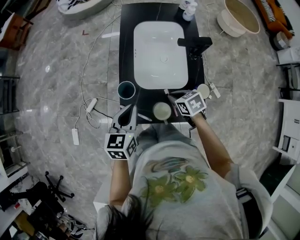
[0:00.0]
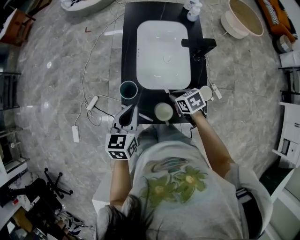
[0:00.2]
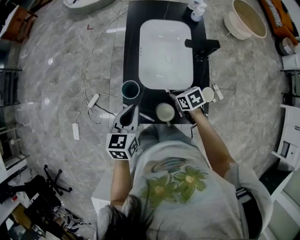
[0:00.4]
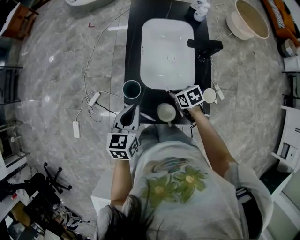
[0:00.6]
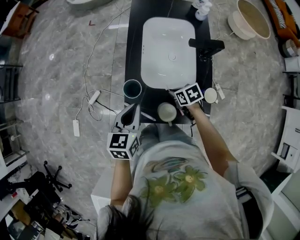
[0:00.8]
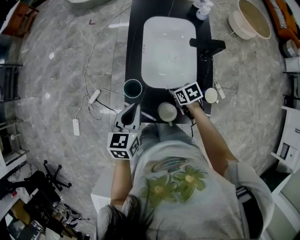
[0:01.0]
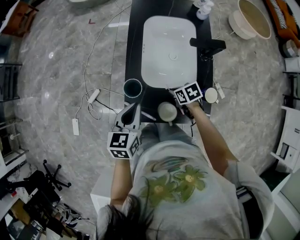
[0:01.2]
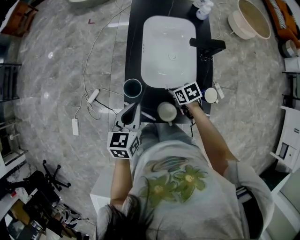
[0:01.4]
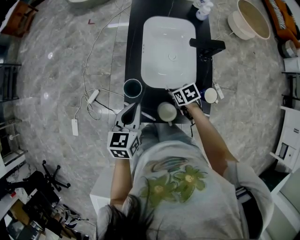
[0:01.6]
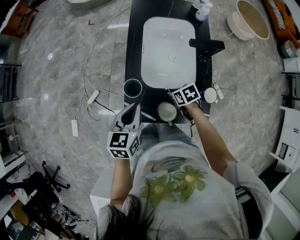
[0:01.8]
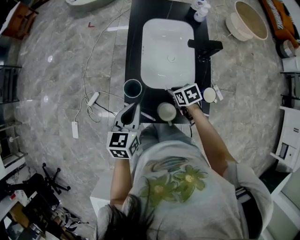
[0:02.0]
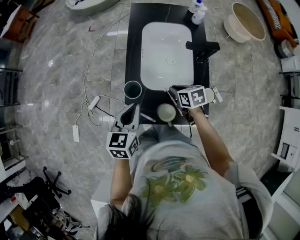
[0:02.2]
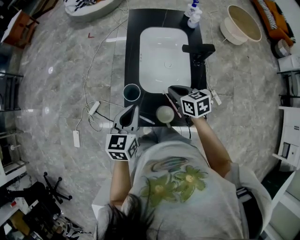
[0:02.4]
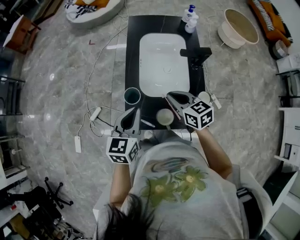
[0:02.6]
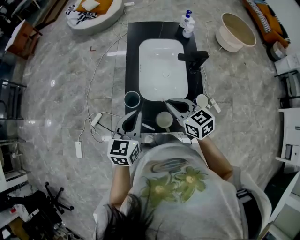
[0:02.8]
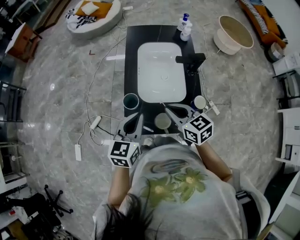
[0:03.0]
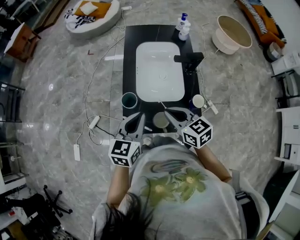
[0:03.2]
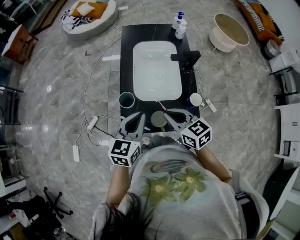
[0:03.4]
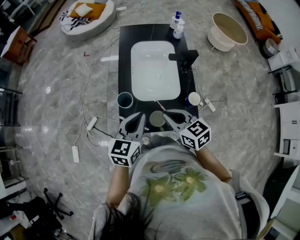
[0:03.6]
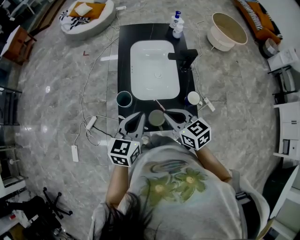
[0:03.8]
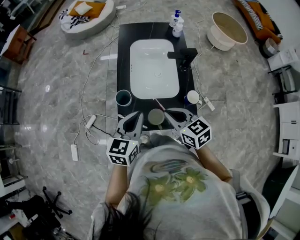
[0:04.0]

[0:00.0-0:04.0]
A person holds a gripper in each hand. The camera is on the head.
0:00.0 to 0:01.4: The right gripper is displaced downward by about 10 cm.
0:01.4 to 0:02.6: The right gripper travels upward by about 20 cm, and changes its angle by about 40 degrees, while the left gripper shifts approximately 5 cm upward.
0:02.6 to 0:04.0: The left gripper shifts by some 5 cm; the right gripper moves backward, approximately 10 cm.

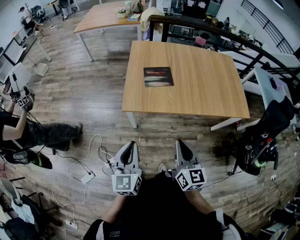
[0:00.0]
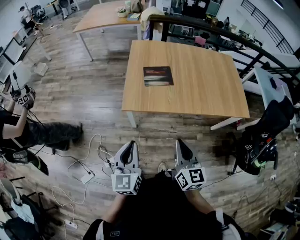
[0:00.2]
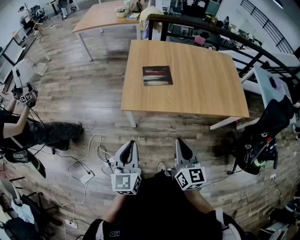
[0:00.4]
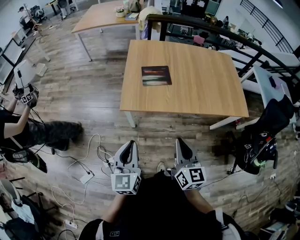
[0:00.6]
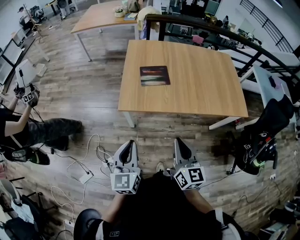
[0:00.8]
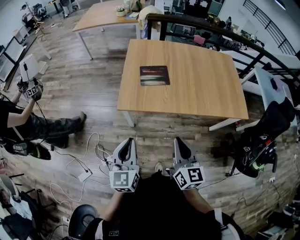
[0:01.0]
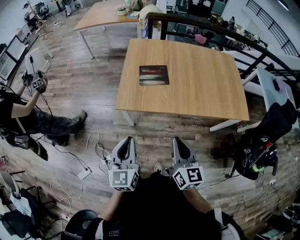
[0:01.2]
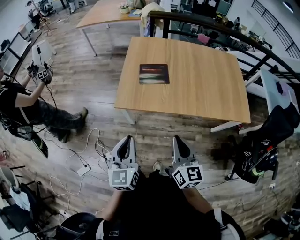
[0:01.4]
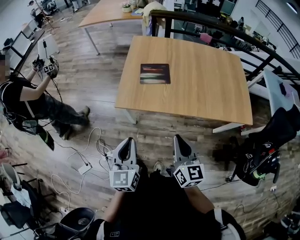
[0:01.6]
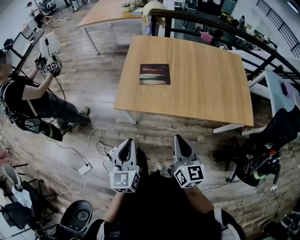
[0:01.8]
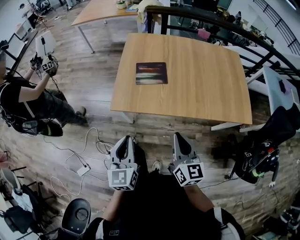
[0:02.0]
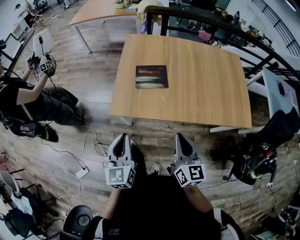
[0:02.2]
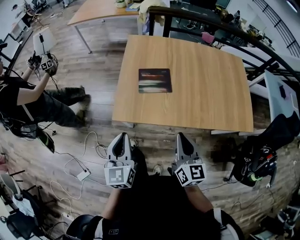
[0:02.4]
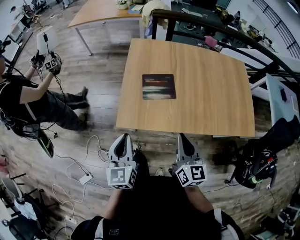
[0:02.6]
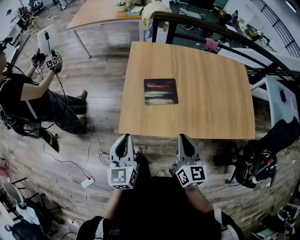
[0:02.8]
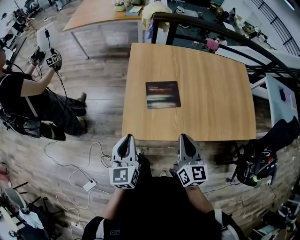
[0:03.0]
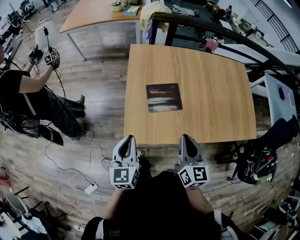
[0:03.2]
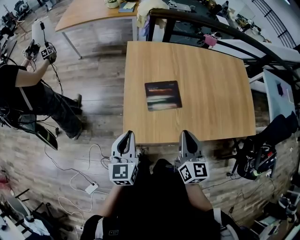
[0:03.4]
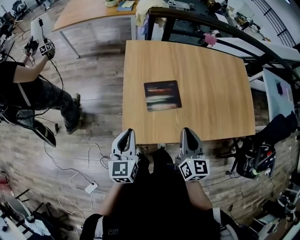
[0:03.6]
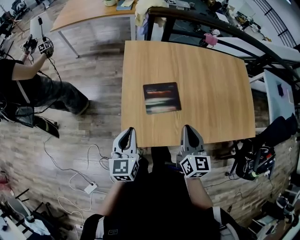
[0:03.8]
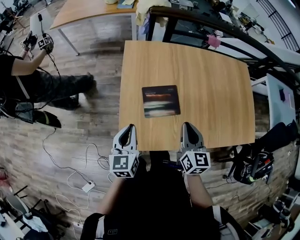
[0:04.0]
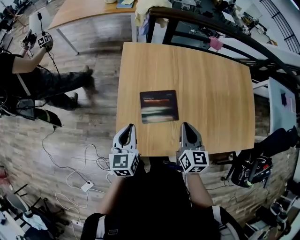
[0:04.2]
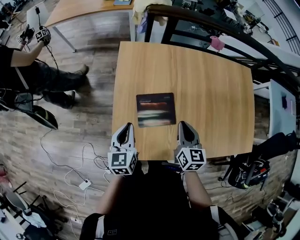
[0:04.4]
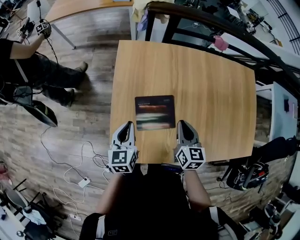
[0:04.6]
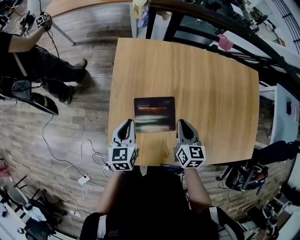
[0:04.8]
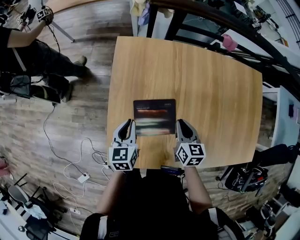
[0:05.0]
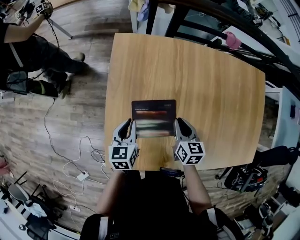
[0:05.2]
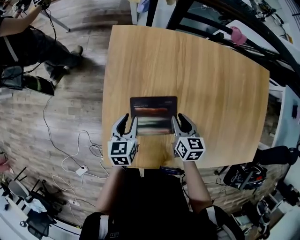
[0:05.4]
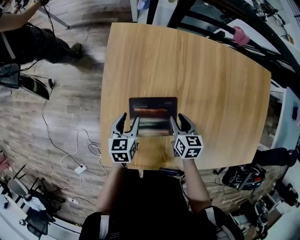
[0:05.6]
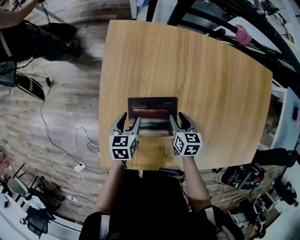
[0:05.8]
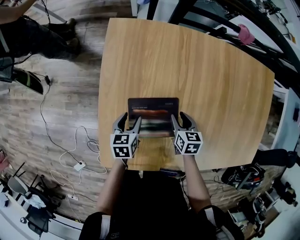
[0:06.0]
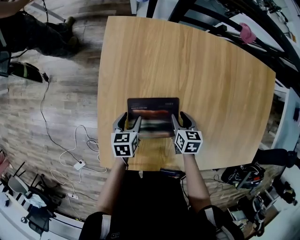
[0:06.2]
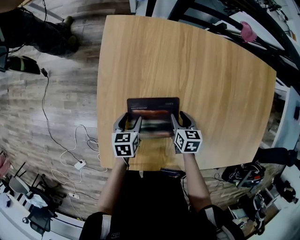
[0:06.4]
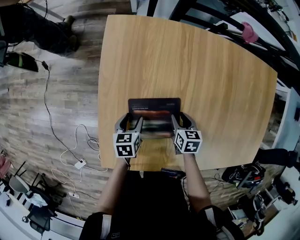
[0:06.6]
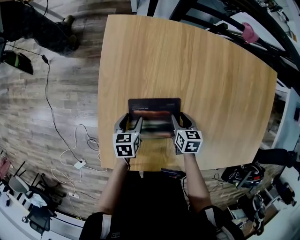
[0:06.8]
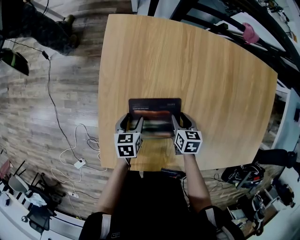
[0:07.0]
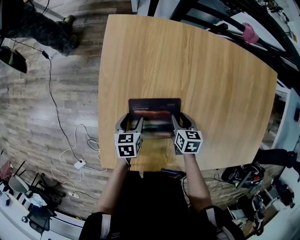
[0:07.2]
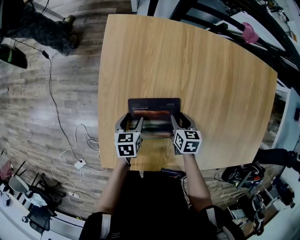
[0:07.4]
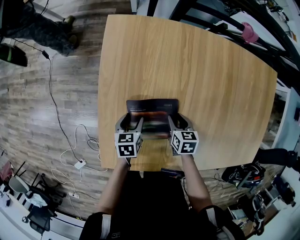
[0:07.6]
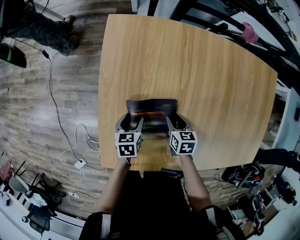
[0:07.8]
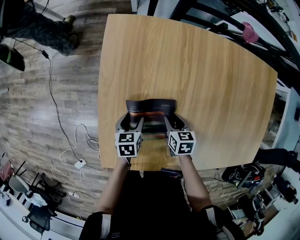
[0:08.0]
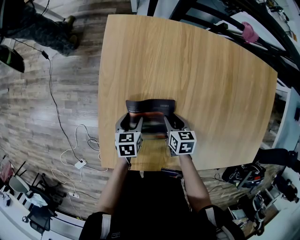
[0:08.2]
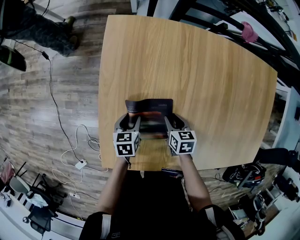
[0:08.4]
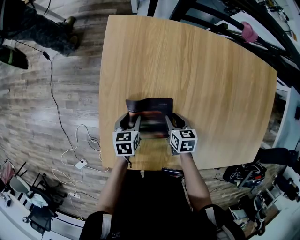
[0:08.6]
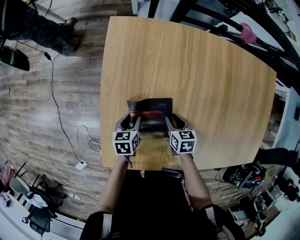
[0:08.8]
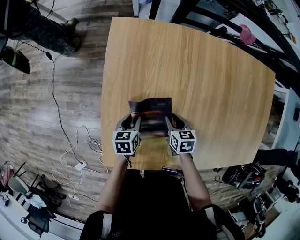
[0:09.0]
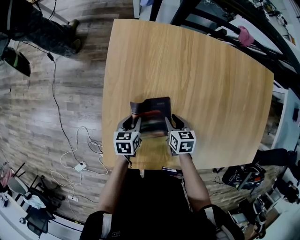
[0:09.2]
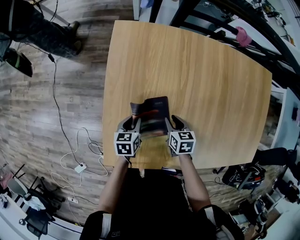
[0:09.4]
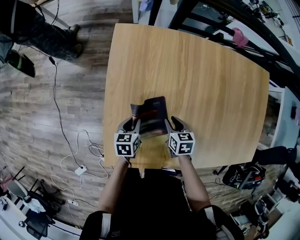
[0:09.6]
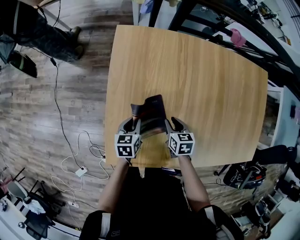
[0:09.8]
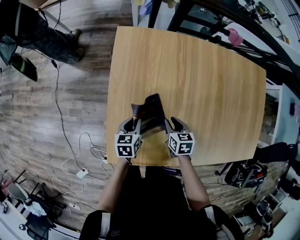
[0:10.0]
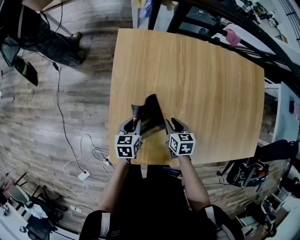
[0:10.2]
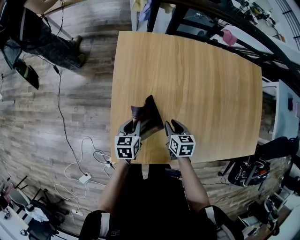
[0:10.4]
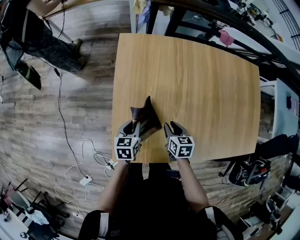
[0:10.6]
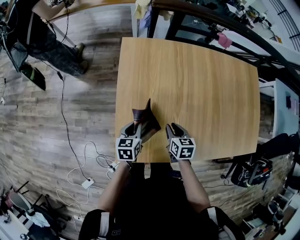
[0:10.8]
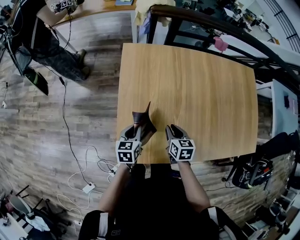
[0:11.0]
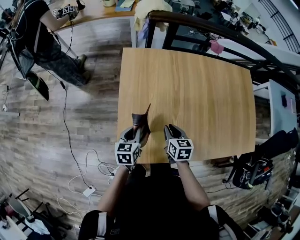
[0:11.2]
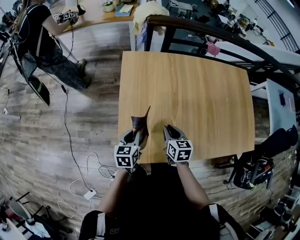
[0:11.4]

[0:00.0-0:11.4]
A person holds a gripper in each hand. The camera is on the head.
0:00.0 to 0:01.4: Both grippers travel together to the right, roughly 5 cm.
0:01.4 to 0:02.8: Both grippers move forward, approximately 20 cm.
0:02.8 to 0:04.2: The left gripper heads forward and downward, covering roughly 25 cm. Meanwhile the right gripper shifts roughly 20 cm forward.
0:04.2 to 0:05.6: Both grippers travel together downward and forward, approximately 25 cm. The right gripper rotates approximately 30 degrees, and opens up; the left gripper swivels roughly 20 degrees, and opens its fingers.
0:05.6 to 0:07.2: The grippers both shift downward by approximately 10 cm.
0:07.2 to 0:08.6: There are only small adjustments of the grippers.
0:08.6 to 0:10.0: Both grippers travel together upward, about 5 cm. The left gripper closes up.
0:10.0 to 0:11.4: The grippers both shift upward and backward by roughly 15 cm.

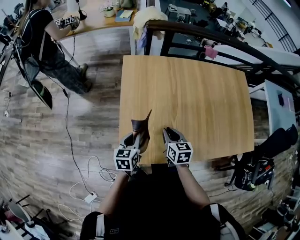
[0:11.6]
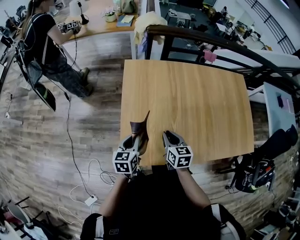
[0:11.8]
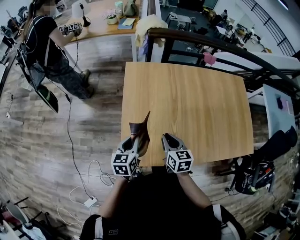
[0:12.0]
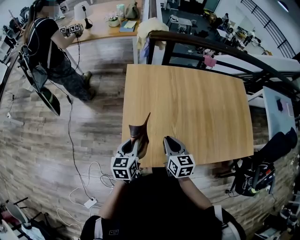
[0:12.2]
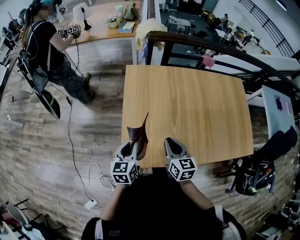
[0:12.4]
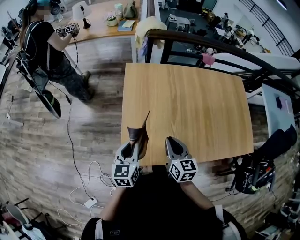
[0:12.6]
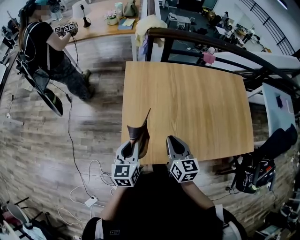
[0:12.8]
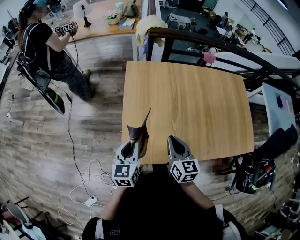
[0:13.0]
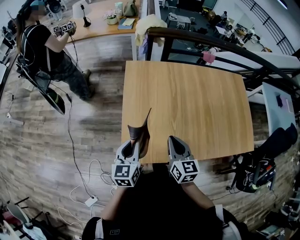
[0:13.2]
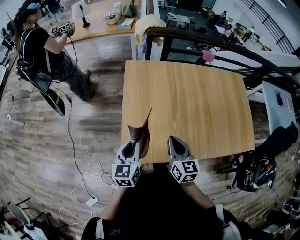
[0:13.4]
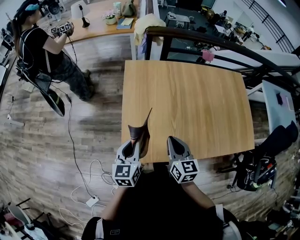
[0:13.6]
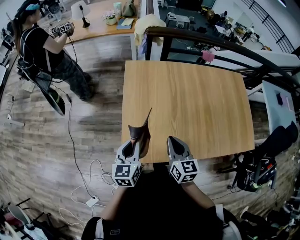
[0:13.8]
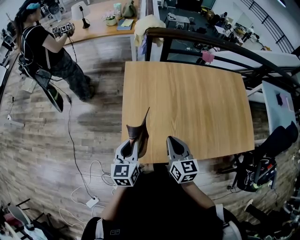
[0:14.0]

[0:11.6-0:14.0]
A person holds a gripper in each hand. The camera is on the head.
0:11.6 to 0:12.8: The right gripper is displaced upward and backward by some 10 cm. The left gripper travels upward by about 10 cm.
0:12.8 to 0:14.0: Both grippers stay about where they are.

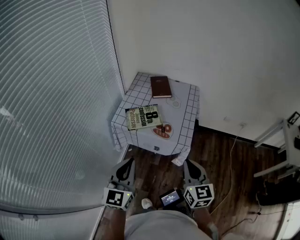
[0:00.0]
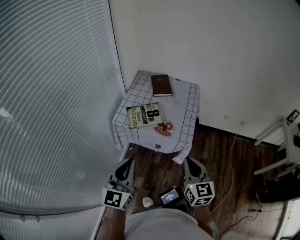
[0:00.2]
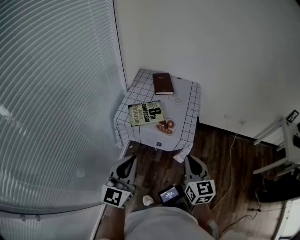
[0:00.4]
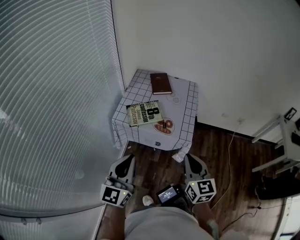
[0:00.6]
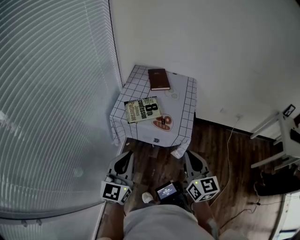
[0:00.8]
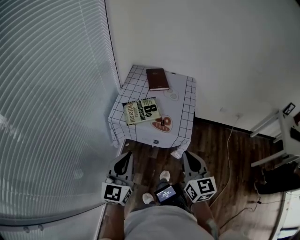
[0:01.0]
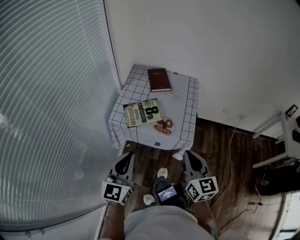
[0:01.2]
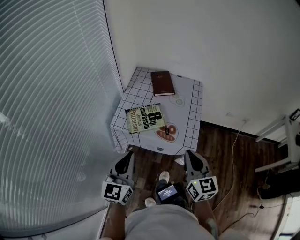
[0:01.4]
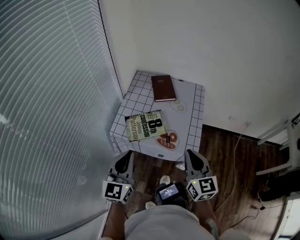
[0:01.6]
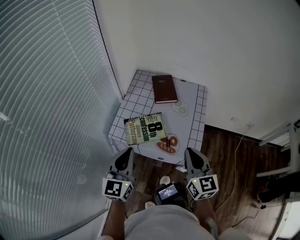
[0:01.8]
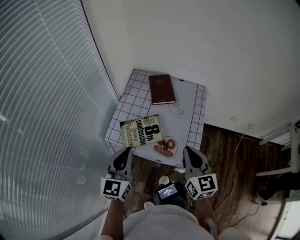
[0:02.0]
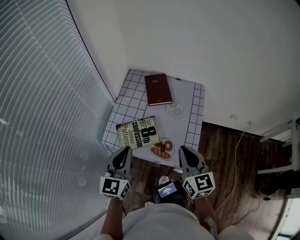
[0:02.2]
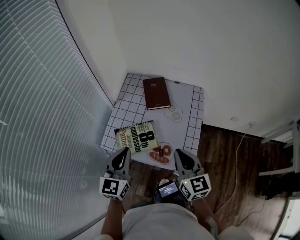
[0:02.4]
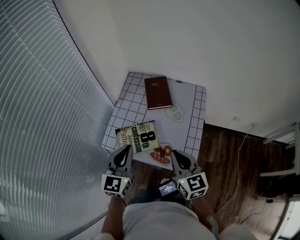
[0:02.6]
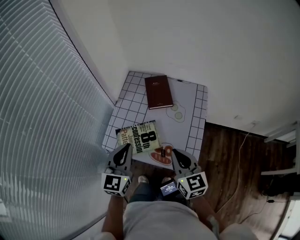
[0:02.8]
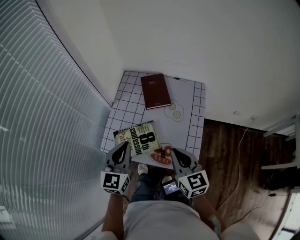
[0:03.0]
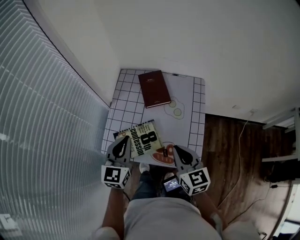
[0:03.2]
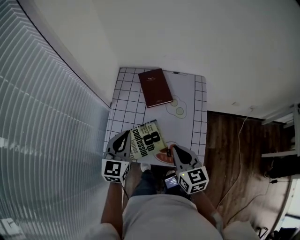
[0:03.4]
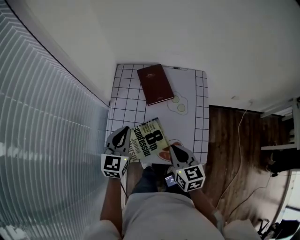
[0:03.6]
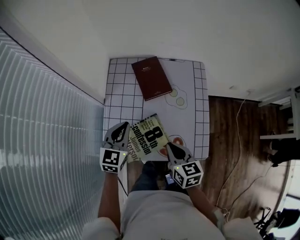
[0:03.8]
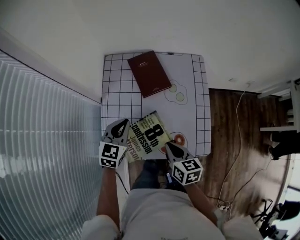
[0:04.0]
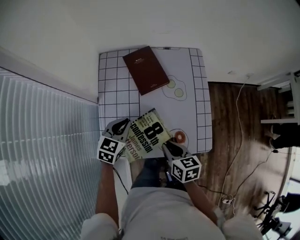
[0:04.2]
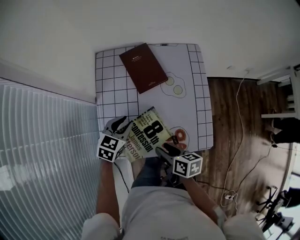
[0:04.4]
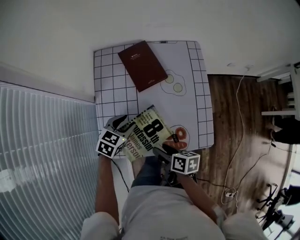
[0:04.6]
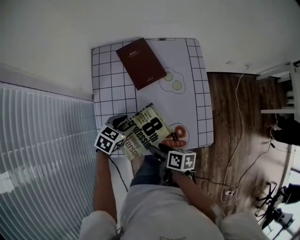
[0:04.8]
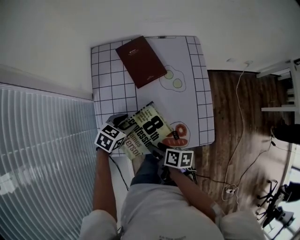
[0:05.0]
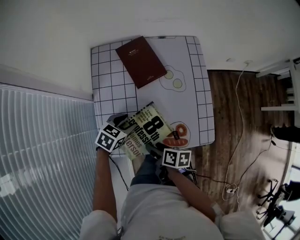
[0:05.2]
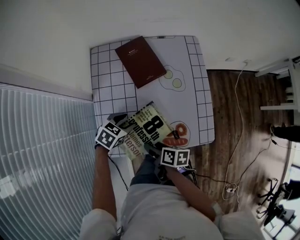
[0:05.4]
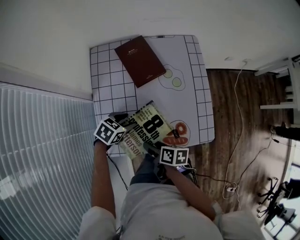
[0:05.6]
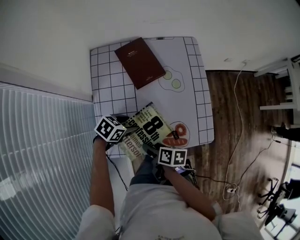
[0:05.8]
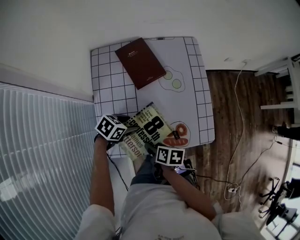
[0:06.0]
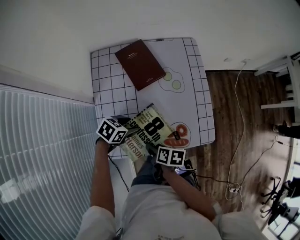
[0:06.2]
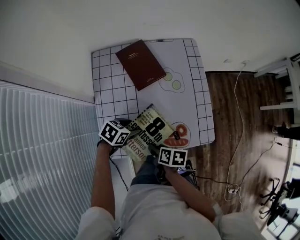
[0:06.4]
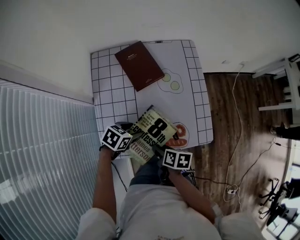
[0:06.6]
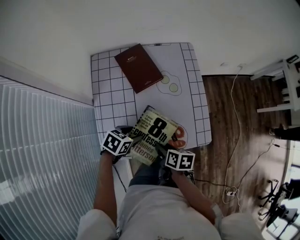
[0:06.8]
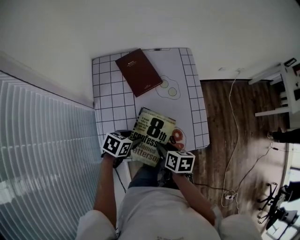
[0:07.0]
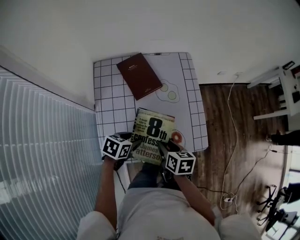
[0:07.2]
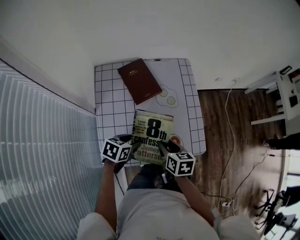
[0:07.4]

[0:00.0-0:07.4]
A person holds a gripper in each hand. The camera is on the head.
0:00.0 to 0:01.4: Both grippers travel together forward, some 10 cm.
0:01.4 to 0:03.0: Both grippers travel together forward, some 20 cm.
0:03.0 to 0:04.4: The left gripper moves downward and forward, some 25 cm, turns by roughly 40 degrees, and opens up; the right gripper goes about 20 cm downward and to the left, rolls clockwise, seen from behind, by approximately 50 degrees, and opens its fingers.
0:04.4 to 0:06.0: Both grippers move downward, approximately 5 cm. The left gripper swivels approximately 40 degrees, and opens; the right gripper changes its angle by roughly 20 degrees.
0:06.0 to 0:07.4: The right gripper moves upward, some 10 cm, and turns by some 30 degrees, while the left gripper goes roughly 5 cm upward.
